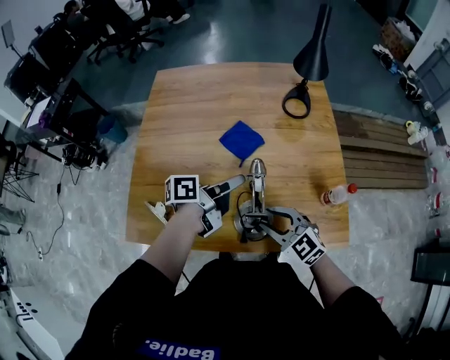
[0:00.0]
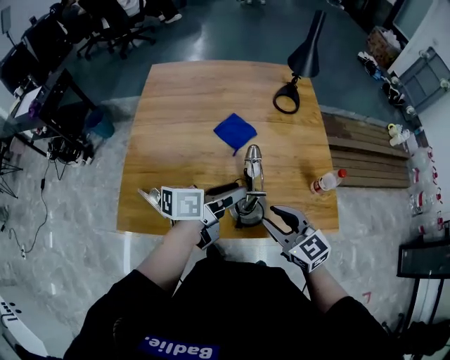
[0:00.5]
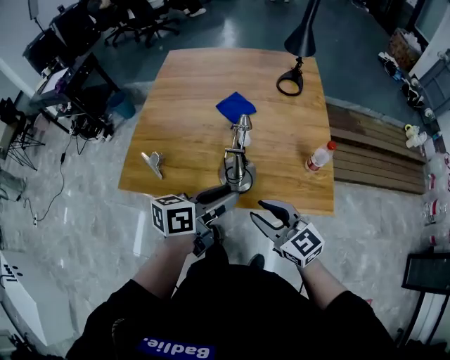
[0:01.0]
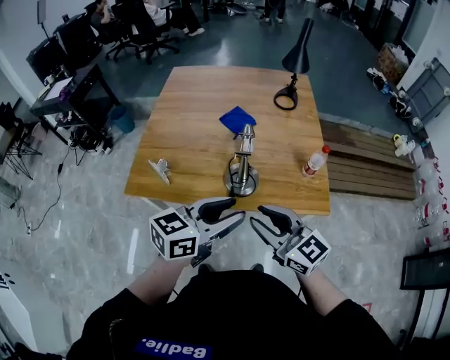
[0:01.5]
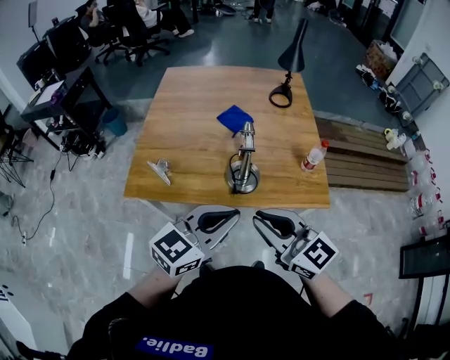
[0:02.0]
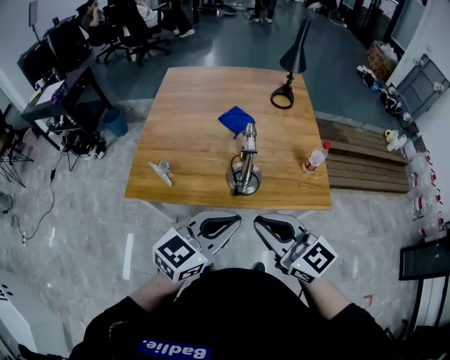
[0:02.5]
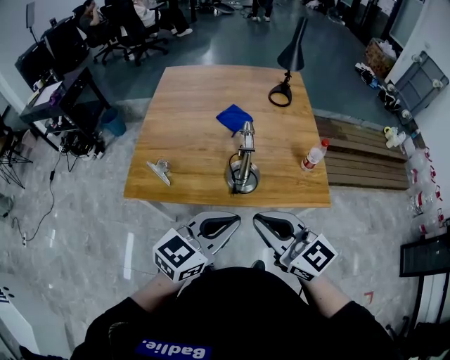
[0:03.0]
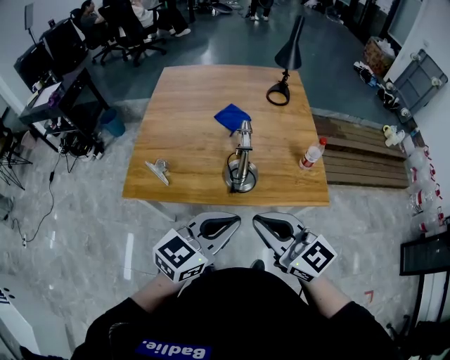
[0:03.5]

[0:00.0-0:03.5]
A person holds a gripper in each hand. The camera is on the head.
0:00.0 to 0:02.0: The left gripper goes some 35 cm backward, rolls clockwise, seen from behind, by approximately 70 degrees, and closes its fingers. Meanwhile the right gripper heads backward and upward, covering some 30 cm, turns by approximately 30 degrees, and closes.
0:02.0 to 0:03.5: The grippers make only small movements.

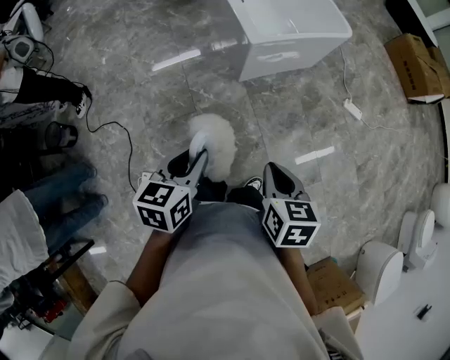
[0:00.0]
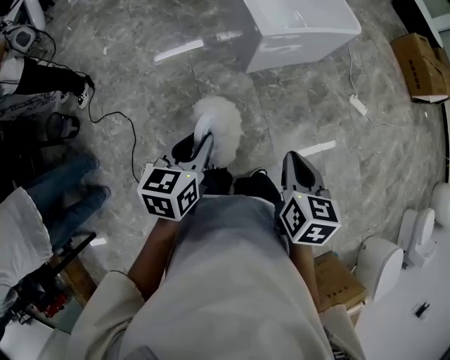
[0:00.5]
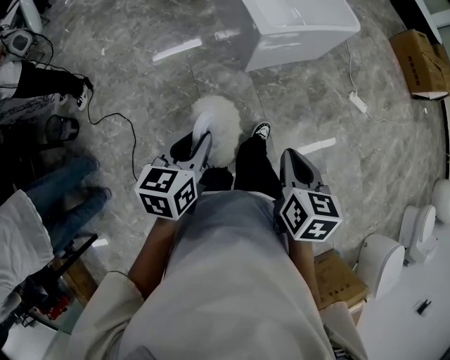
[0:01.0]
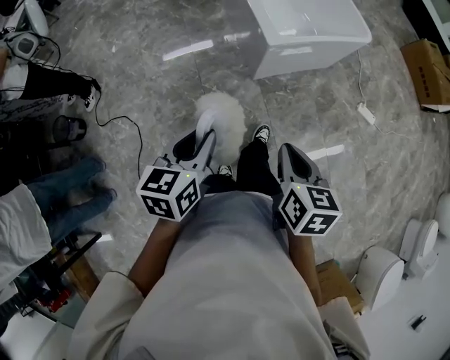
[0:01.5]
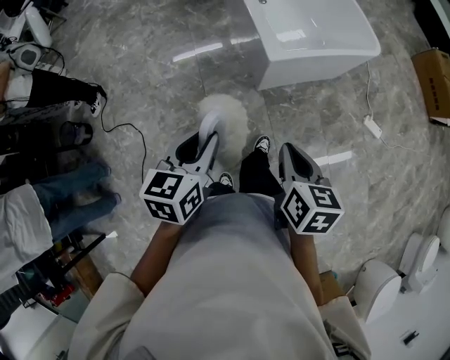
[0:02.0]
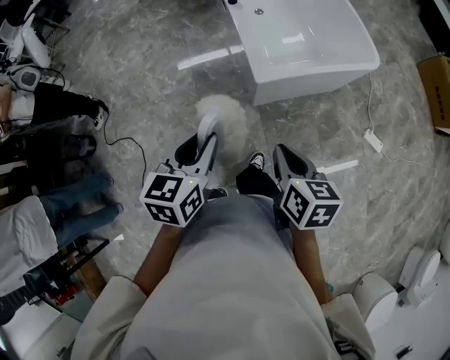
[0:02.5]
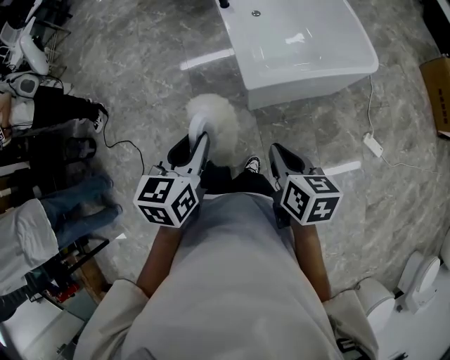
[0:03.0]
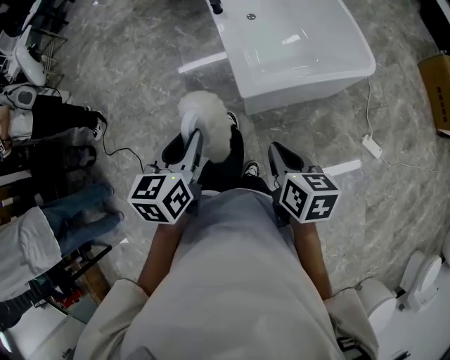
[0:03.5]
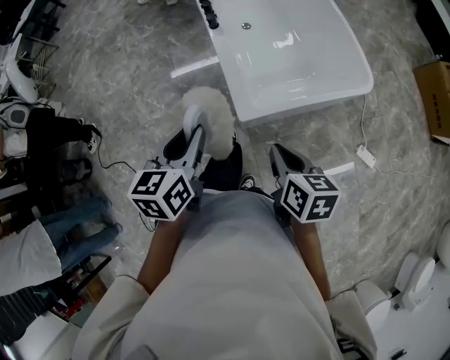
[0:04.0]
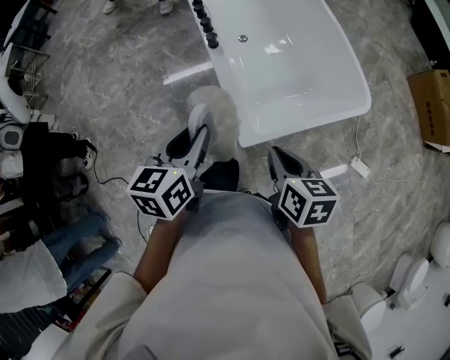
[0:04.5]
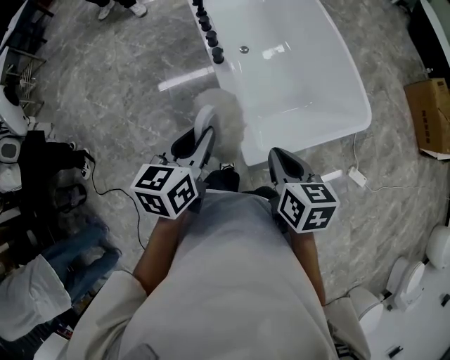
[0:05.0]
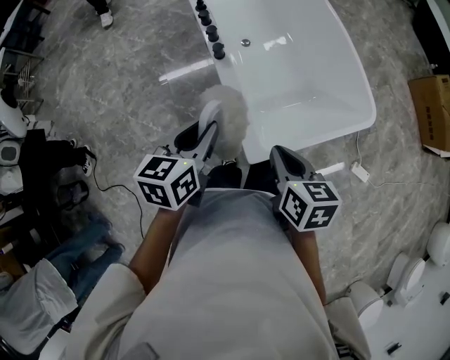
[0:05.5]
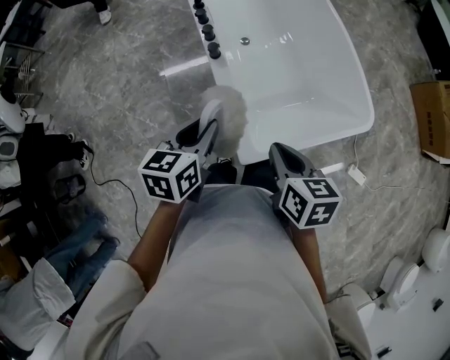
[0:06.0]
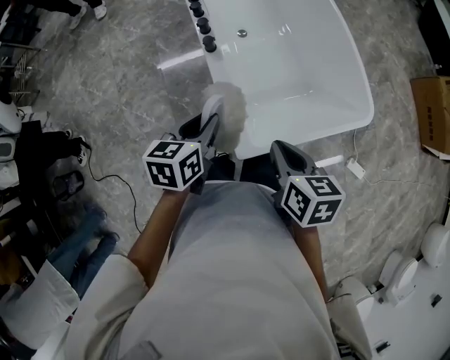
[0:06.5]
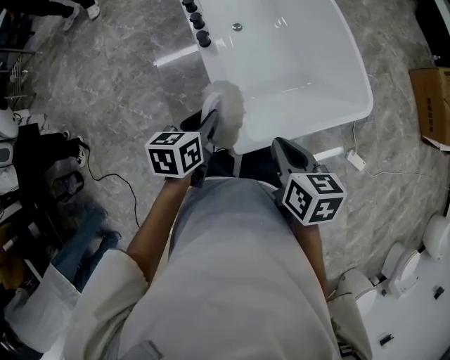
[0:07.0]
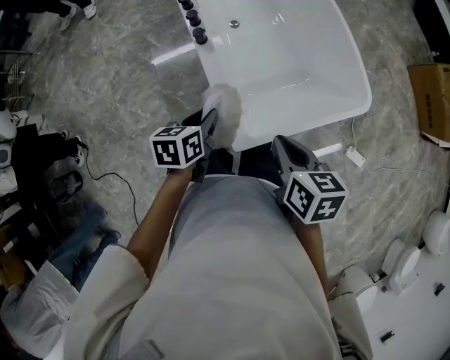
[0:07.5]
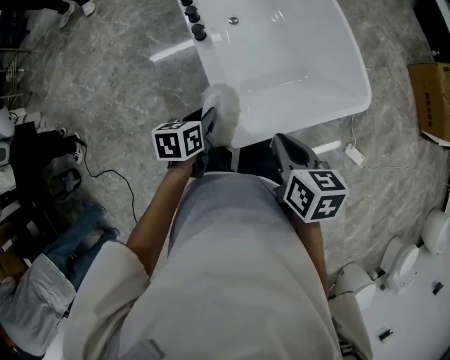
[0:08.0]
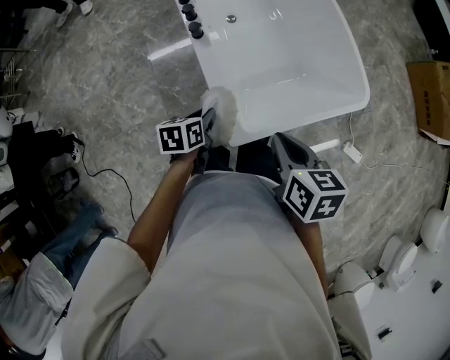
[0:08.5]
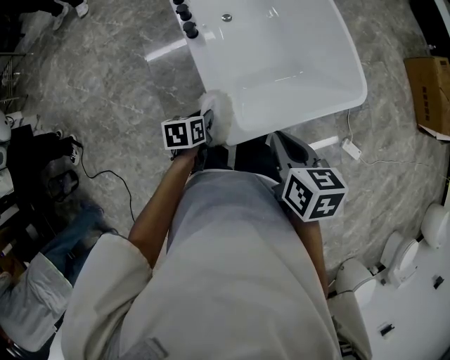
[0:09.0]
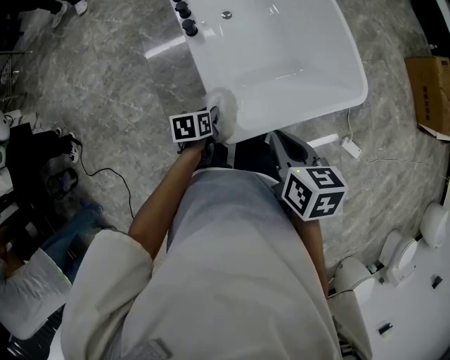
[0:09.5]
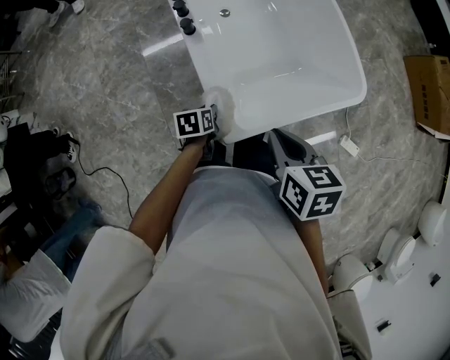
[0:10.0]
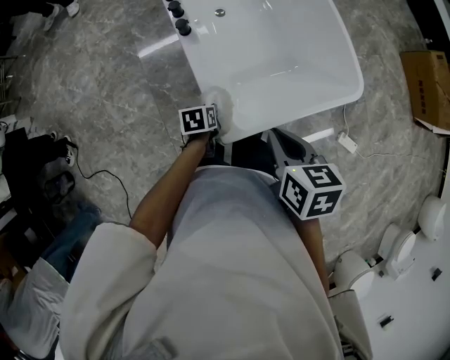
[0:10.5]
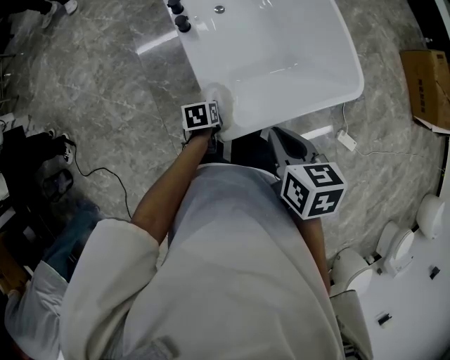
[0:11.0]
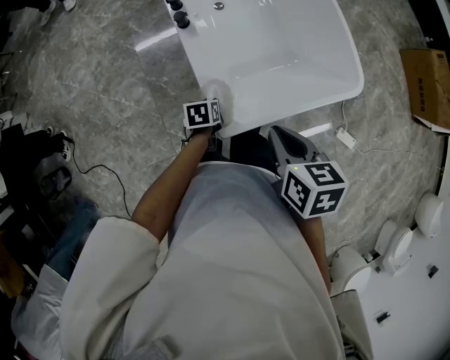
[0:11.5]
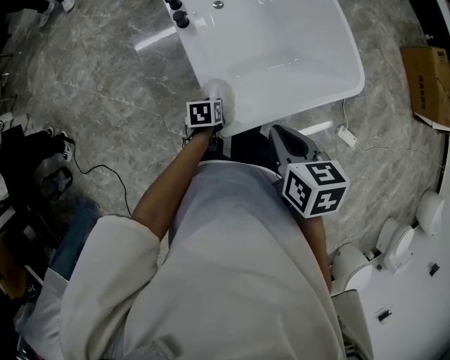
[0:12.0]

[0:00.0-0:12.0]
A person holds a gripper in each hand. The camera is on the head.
0:00.0 to 0:02.0: Both grippers travel together forward, roughly 20 cm.
0:02.0 to 0:04.0: The two grippers go roughly 30 cm forward and to the right.
0:04.0 to 0:06.0: Both grippers travel together forward, approximately 20 cm.
0:06.0 to 0:08.0: The left gripper moves downward, approximately 15 cm.
0:08.0 to 0:10.0: The left gripper goes some 15 cm downward.
0:10.0 to 0:12.0: The grippers make only small movements.

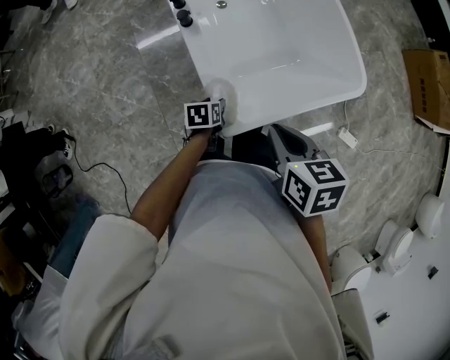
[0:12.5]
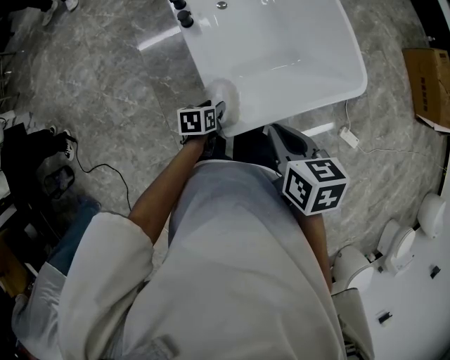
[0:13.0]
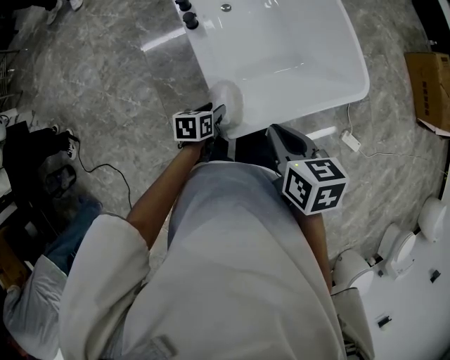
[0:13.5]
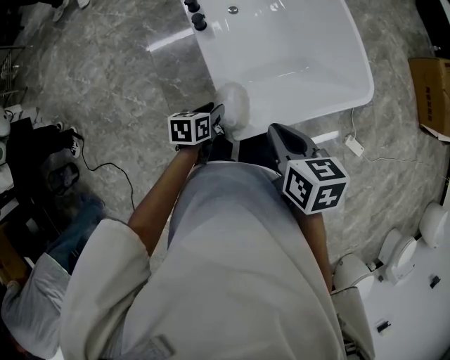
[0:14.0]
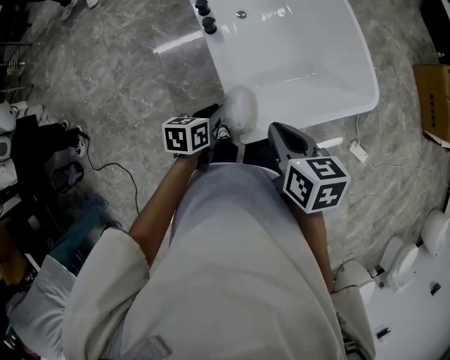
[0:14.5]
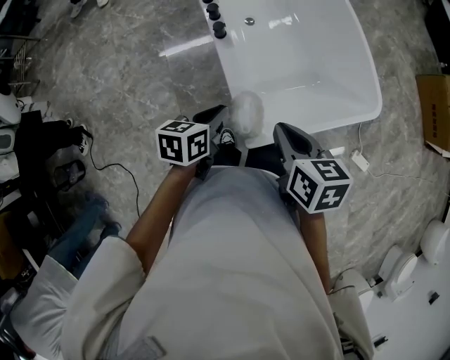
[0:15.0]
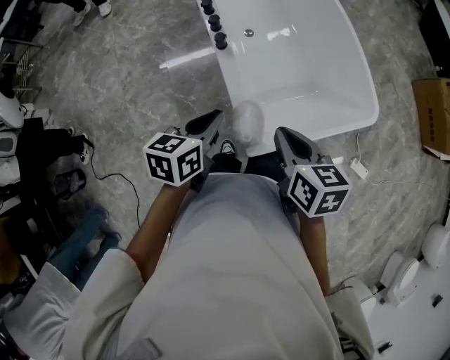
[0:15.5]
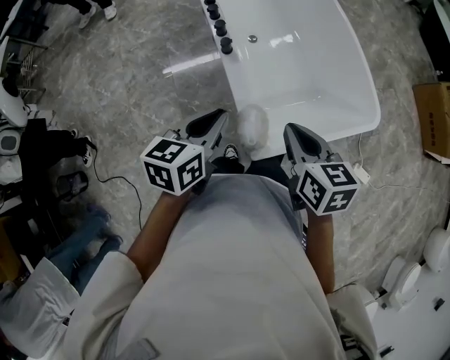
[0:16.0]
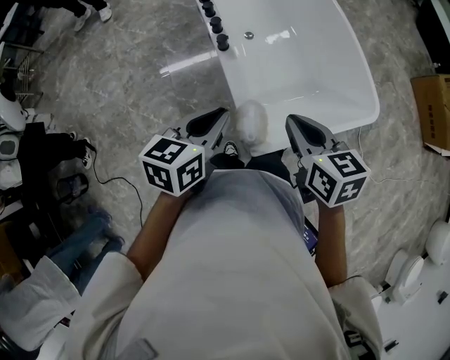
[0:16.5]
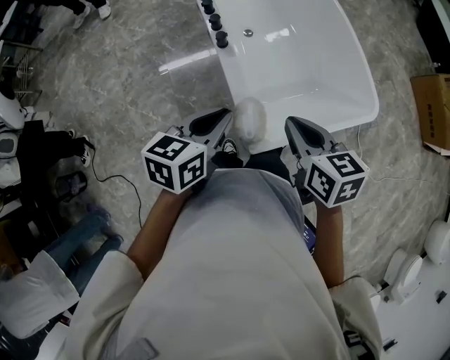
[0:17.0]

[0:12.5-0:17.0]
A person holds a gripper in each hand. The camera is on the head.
0:12.5 to 0:14.5: The right gripper shifts about 5 cm to the left, while the left gripper travels upward and to the left by approximately 15 cm, and closes.
0:14.5 to 0:17.0: The left gripper shifts some 20 cm upward, and changes its angle by roughly 20 degrees.

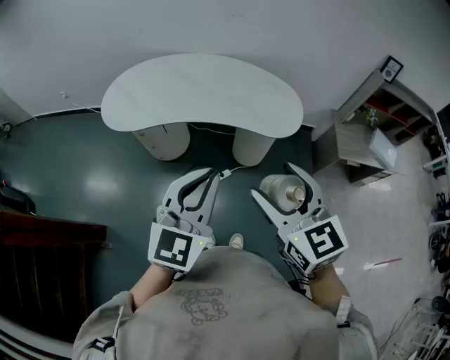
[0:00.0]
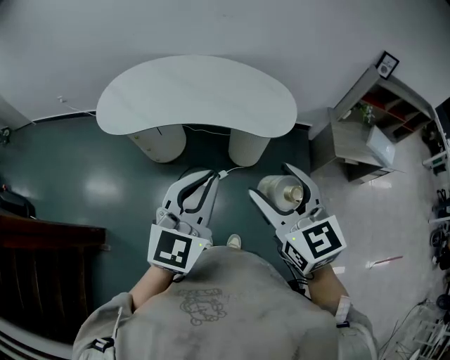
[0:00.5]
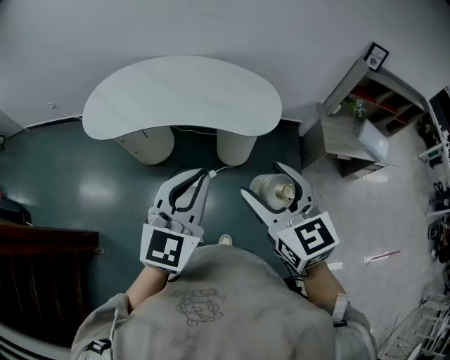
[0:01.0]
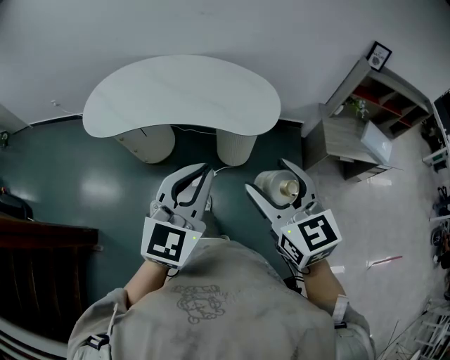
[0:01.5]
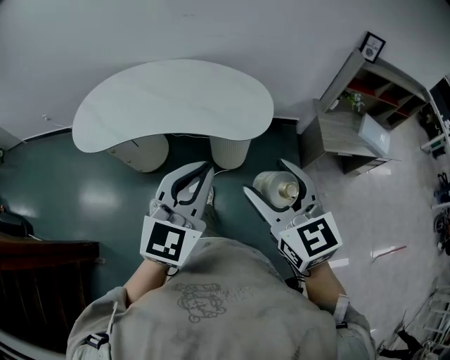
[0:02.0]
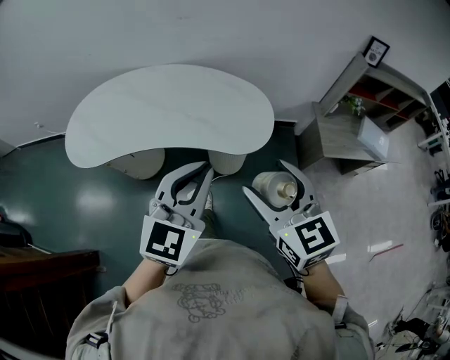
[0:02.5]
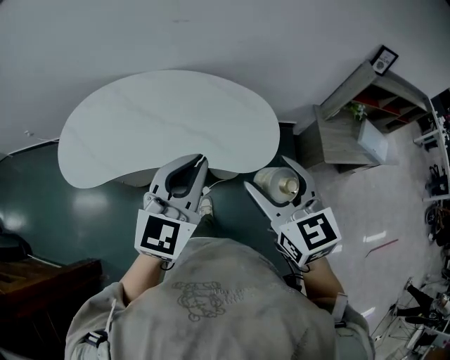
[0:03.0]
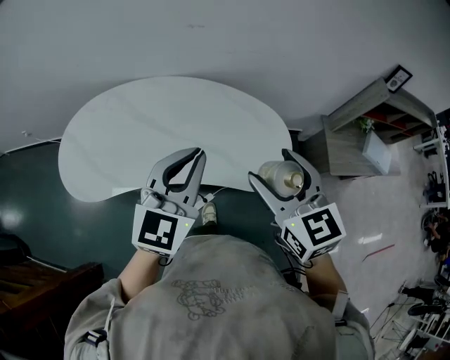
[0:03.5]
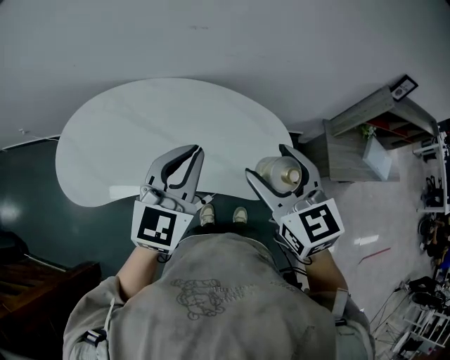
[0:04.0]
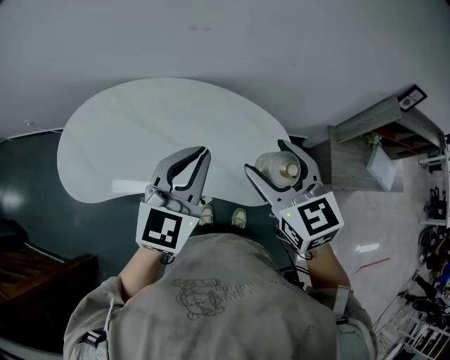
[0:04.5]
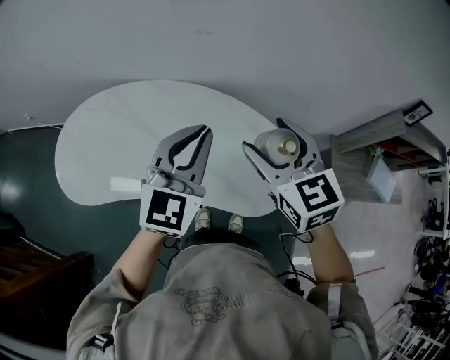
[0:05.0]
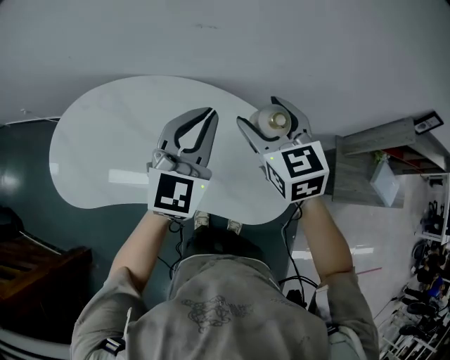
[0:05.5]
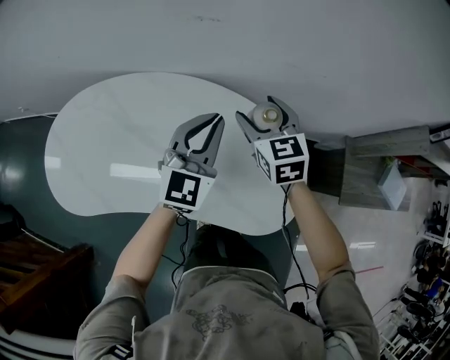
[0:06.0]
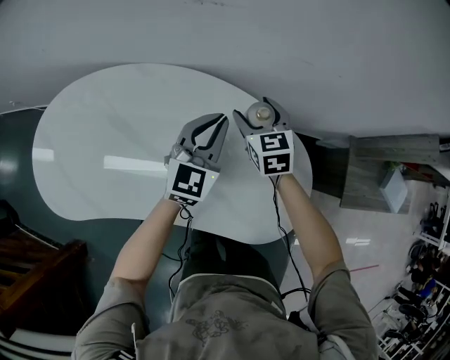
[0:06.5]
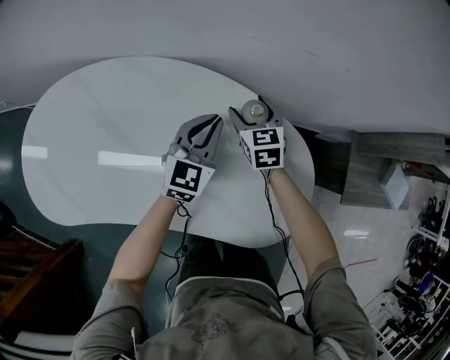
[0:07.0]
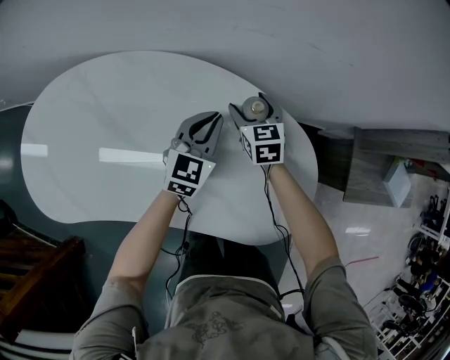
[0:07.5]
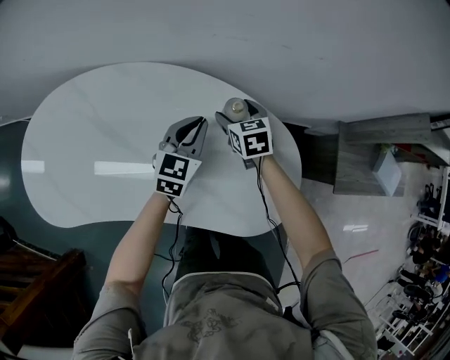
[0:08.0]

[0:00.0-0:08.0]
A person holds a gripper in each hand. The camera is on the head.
0:00.0 to 0:02.0: The two grippers go roughly 15 cm to the right and forward.
0:02.0 to 0:04.0: Both grippers move forward, about 35 cm.
0:04.0 to 0:06.0: The two grippers go approximately 30 cm forward and downward.
0:06.0 to 0:08.0: Both grippers move downward, approximately 20 cm.
